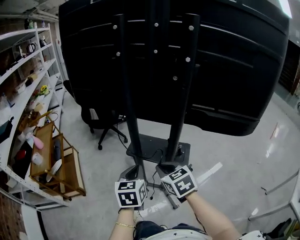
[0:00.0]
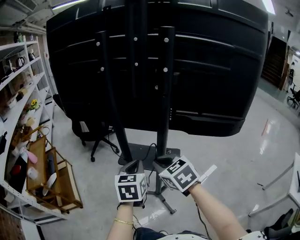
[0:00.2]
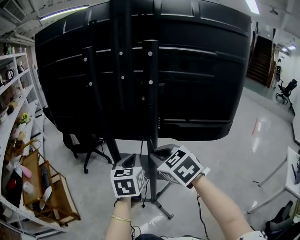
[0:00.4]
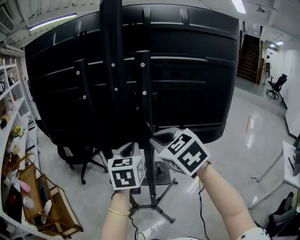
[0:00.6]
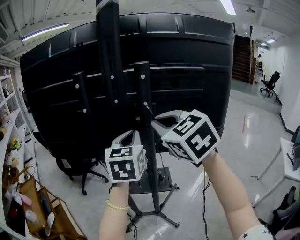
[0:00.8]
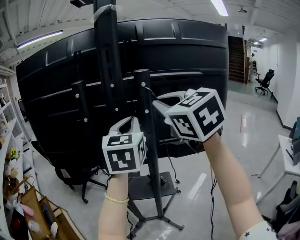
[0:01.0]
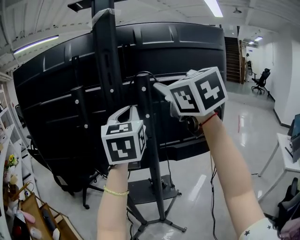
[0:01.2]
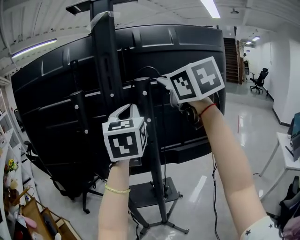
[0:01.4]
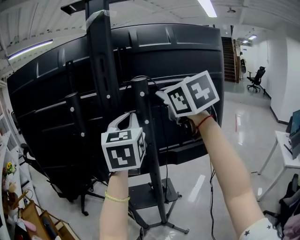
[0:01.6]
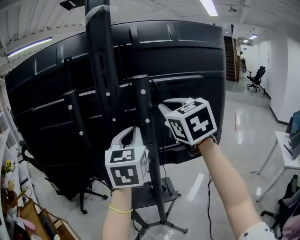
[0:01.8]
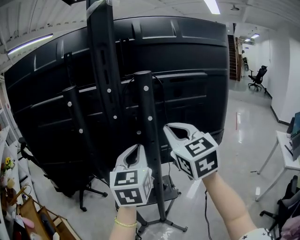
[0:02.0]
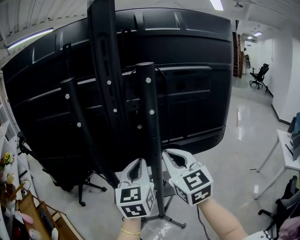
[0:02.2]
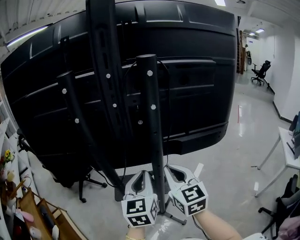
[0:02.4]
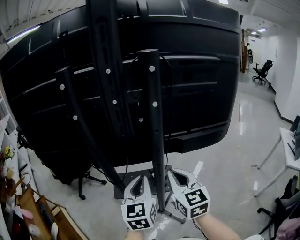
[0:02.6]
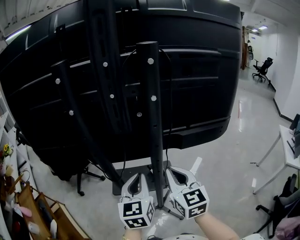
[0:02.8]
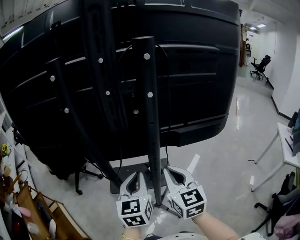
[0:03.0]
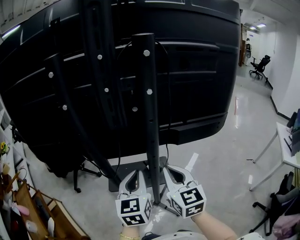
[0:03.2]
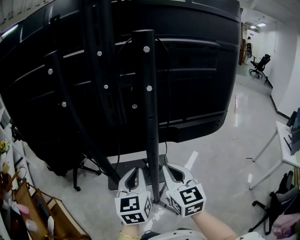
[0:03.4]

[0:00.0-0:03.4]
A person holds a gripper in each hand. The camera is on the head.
0:00.0 to 0:01.6: The grippers both shift upward by roughly 40 cm. The left gripper rotates about 40 degrees, while the right gripper changes its angle by roughly 40 degrees.
0:01.6 to 0:03.4: The grippers both shift downward by some 30 cm.

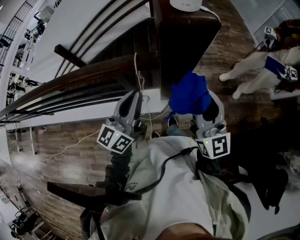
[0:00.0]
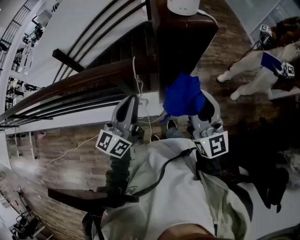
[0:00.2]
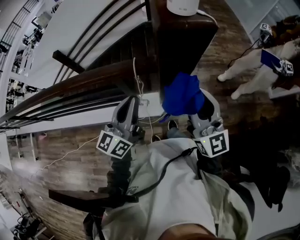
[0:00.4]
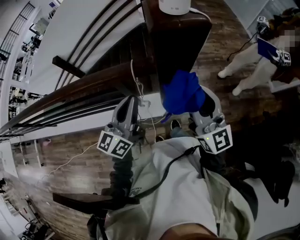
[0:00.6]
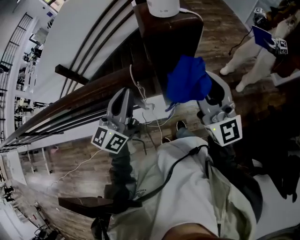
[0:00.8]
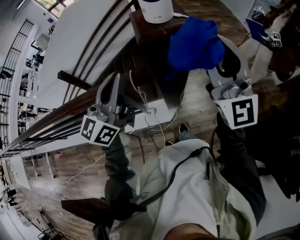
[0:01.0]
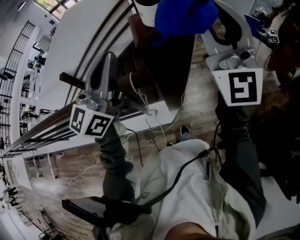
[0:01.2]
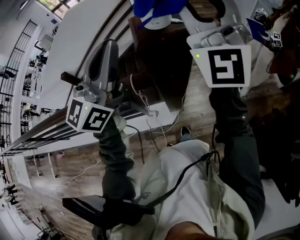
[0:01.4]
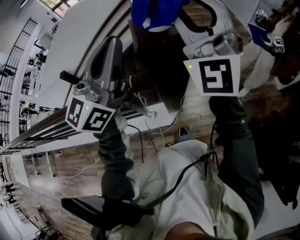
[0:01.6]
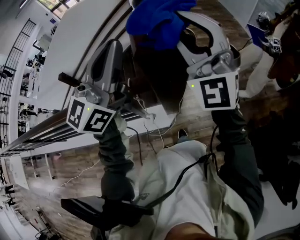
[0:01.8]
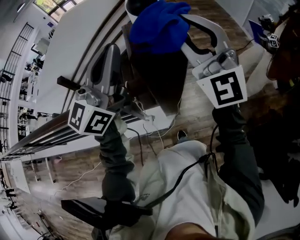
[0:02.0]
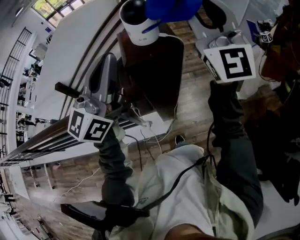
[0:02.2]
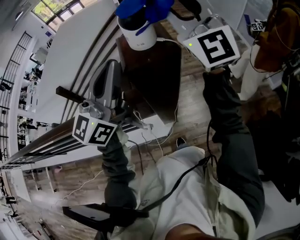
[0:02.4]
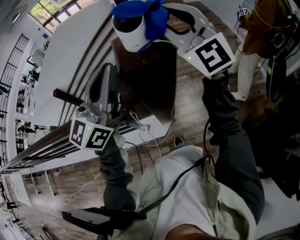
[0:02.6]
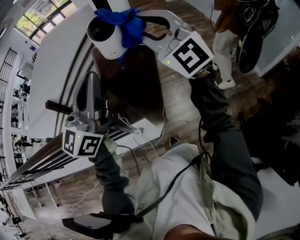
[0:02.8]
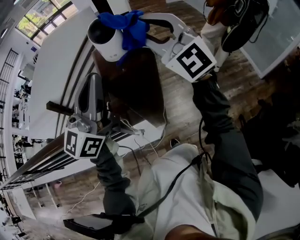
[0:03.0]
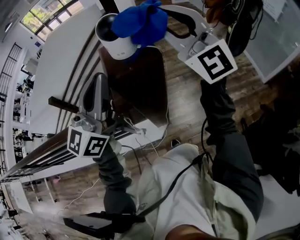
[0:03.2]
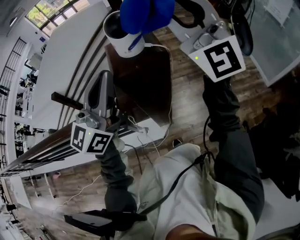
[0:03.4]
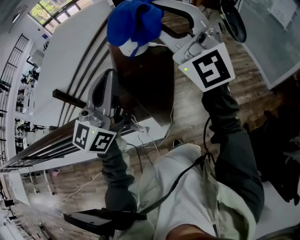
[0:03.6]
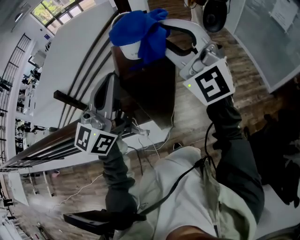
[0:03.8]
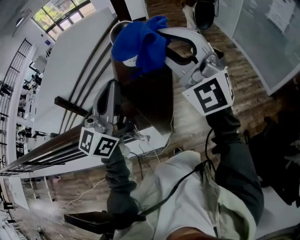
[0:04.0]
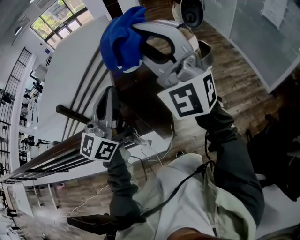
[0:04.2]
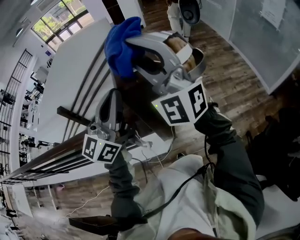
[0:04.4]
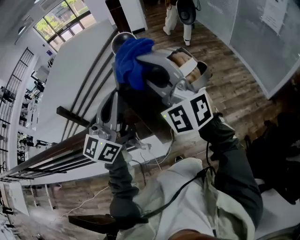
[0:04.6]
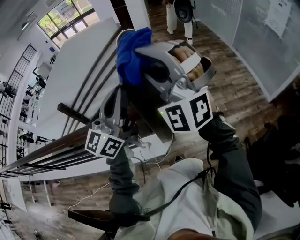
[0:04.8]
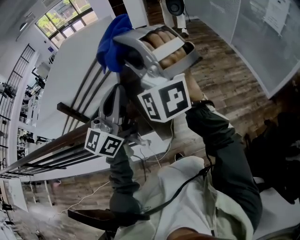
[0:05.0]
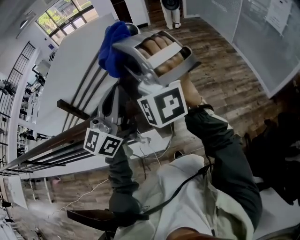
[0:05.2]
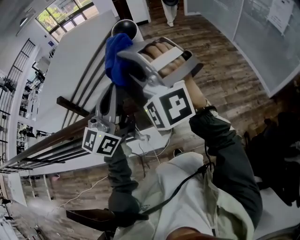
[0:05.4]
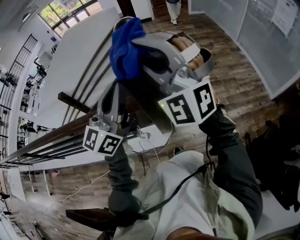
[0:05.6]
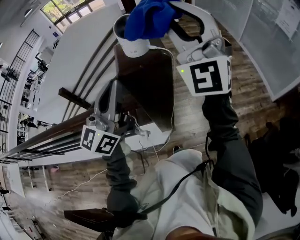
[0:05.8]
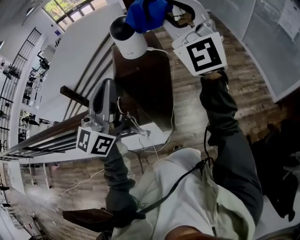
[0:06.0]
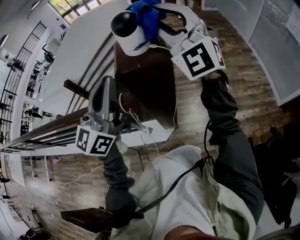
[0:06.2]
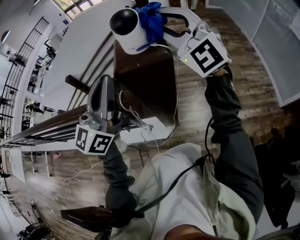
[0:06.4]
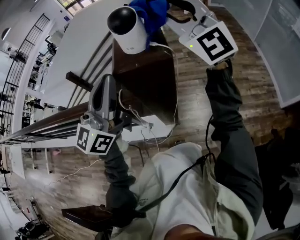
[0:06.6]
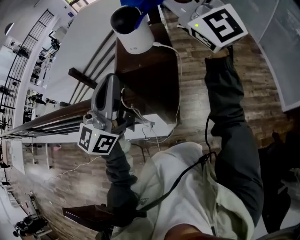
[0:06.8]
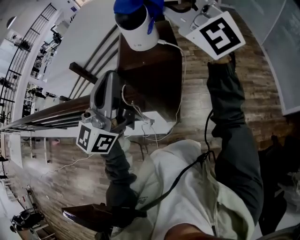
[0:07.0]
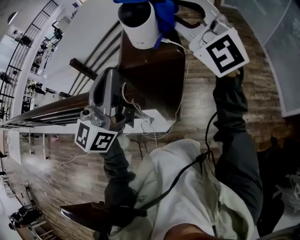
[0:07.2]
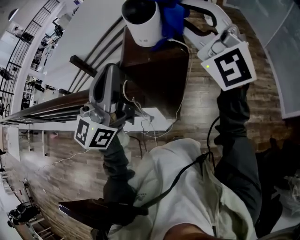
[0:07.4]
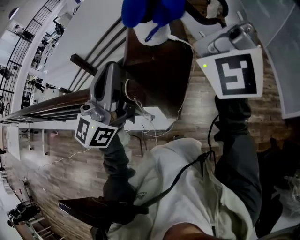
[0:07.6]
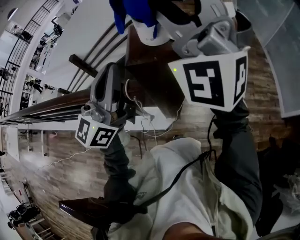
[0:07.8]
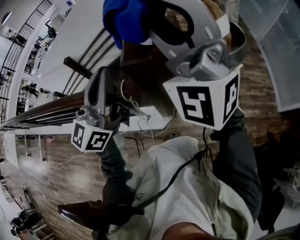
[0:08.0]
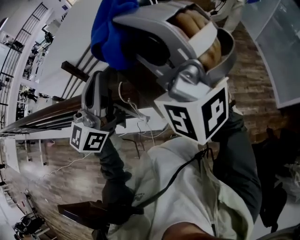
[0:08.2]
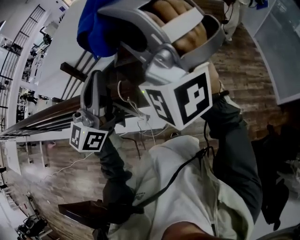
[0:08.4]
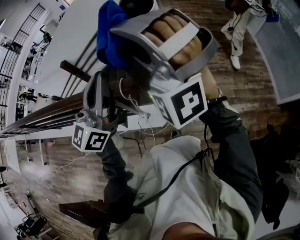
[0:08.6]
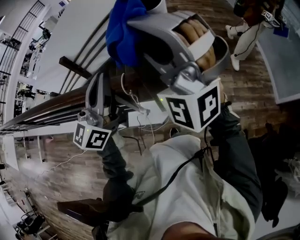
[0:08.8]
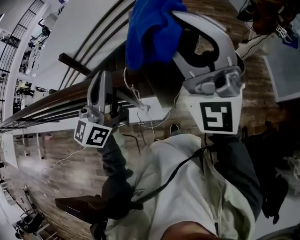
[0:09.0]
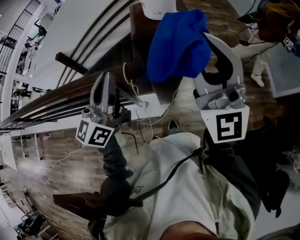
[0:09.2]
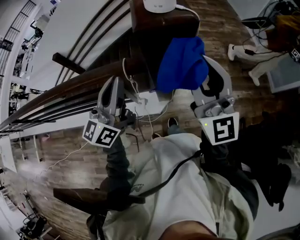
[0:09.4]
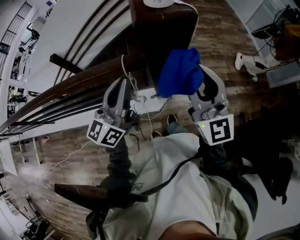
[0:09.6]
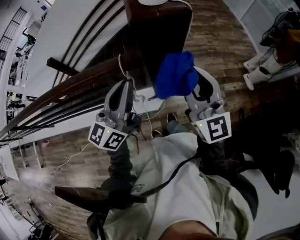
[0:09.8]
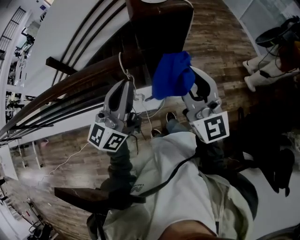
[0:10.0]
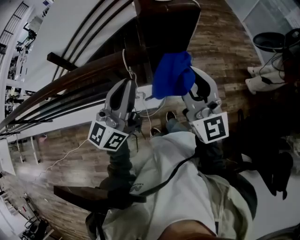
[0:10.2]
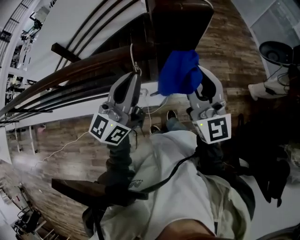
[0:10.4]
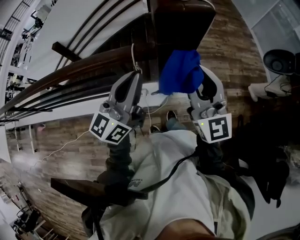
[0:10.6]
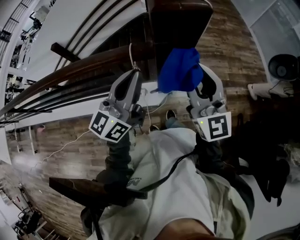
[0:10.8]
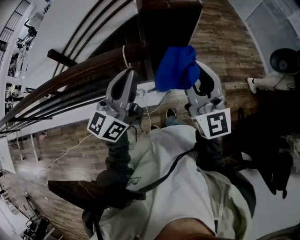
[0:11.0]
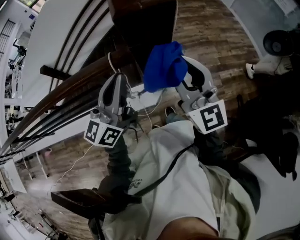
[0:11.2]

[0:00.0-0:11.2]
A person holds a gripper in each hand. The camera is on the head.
0:00.0 to 0:01.6: Both grippers travel together upward and forward, some 25 cm. The left gripper rotates about 30 degrees; the right gripper twists some 50 degrees counterclockwise, seen from behind.
0:01.6 to 0:03.2: The right gripper swings left and right, some 5 cm each way, with 2 reversals, and changes its angle by some 20 degrees.
0:03.2 to 0:04.8: The right gripper travels to the left and backward by roughly 10 cm, and rolls counterclockwise, seen from behind, by some 40 degrees.
0:04.8 to 0:06.4: The right gripper moves forward, about 10 cm, and turns by about 30 degrees.
0:06.4 to 0:08.0: The right gripper shifts approximately 10 cm to the left, backward and upward, and swivels roughly 30 degrees.
0:08.0 to 0:09.6: The left gripper travels downward and backward by about 15 cm. Meanwhile the right gripper shifts some 25 cm downward and backward, and twists about 60 degrees clockwise, seen from behind.
0:09.6 to 0:11.2: There are only small adjustments of the grippers.

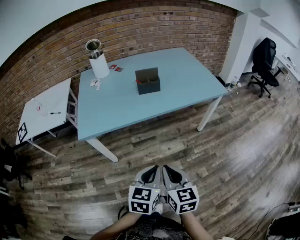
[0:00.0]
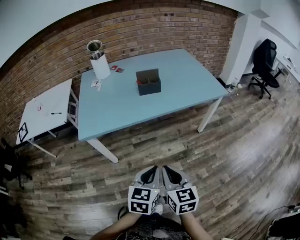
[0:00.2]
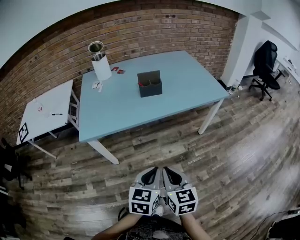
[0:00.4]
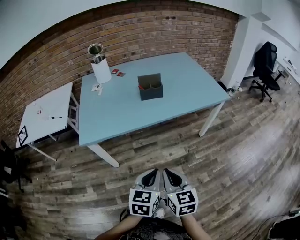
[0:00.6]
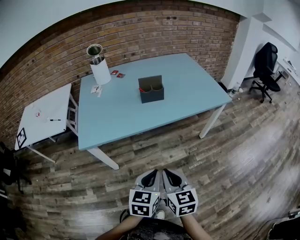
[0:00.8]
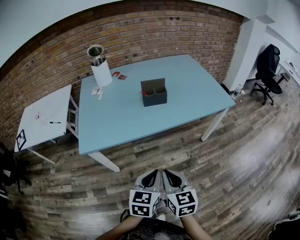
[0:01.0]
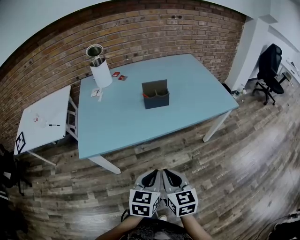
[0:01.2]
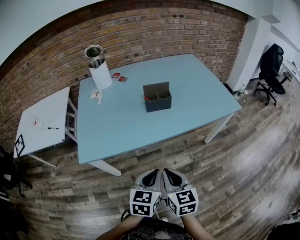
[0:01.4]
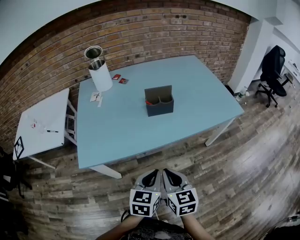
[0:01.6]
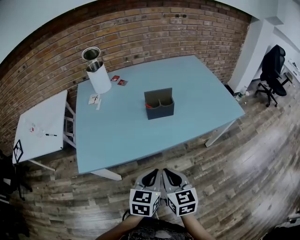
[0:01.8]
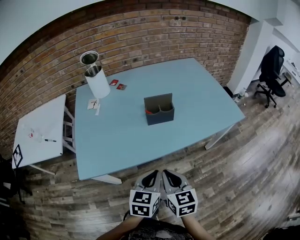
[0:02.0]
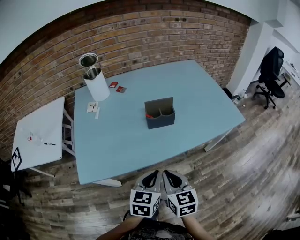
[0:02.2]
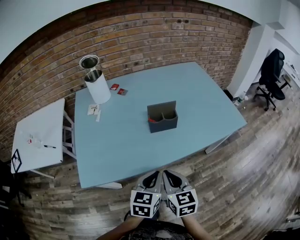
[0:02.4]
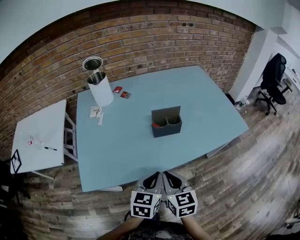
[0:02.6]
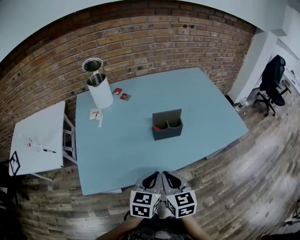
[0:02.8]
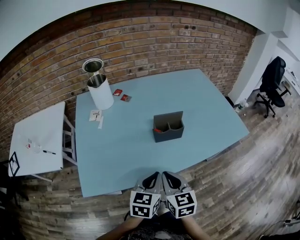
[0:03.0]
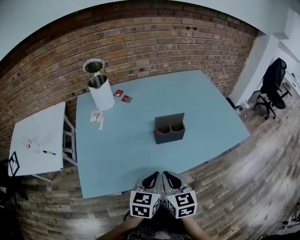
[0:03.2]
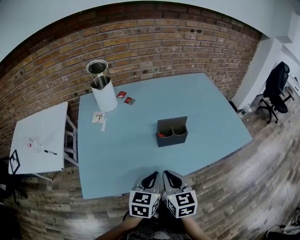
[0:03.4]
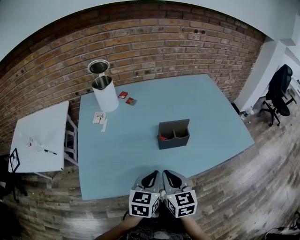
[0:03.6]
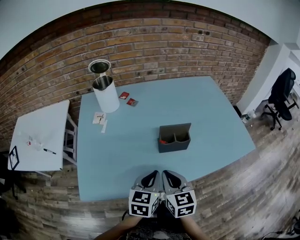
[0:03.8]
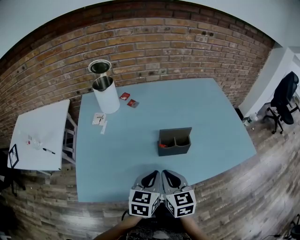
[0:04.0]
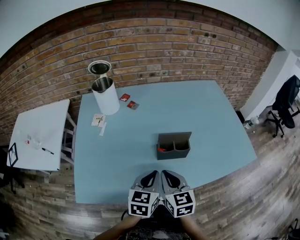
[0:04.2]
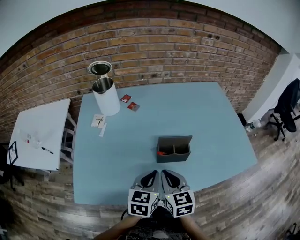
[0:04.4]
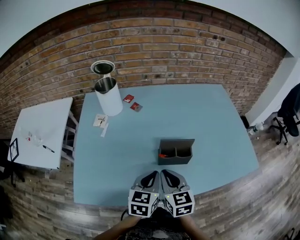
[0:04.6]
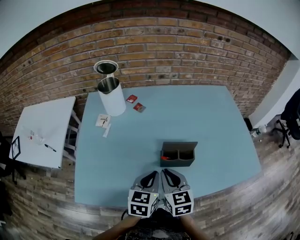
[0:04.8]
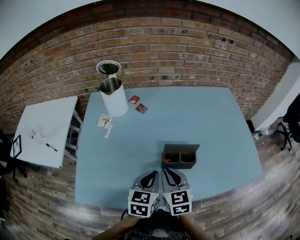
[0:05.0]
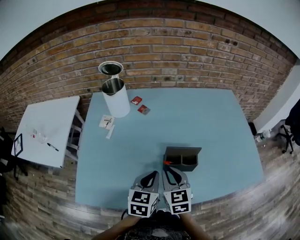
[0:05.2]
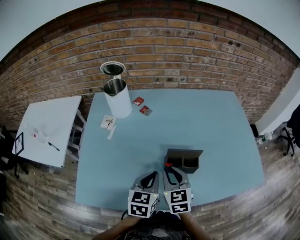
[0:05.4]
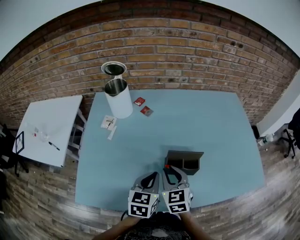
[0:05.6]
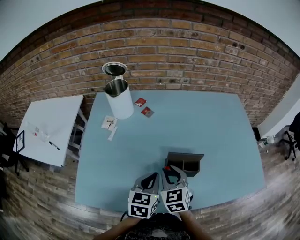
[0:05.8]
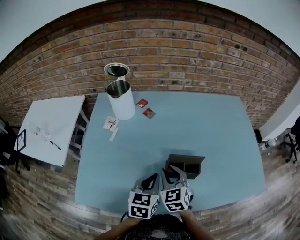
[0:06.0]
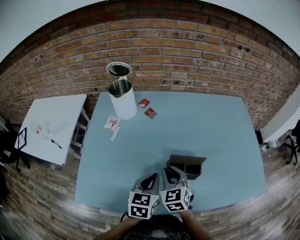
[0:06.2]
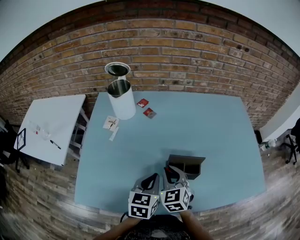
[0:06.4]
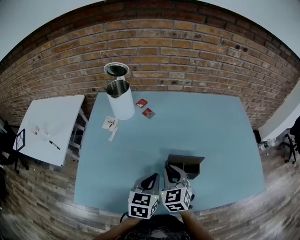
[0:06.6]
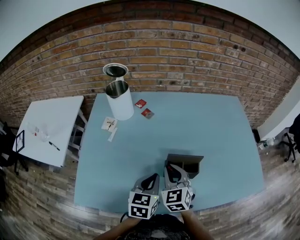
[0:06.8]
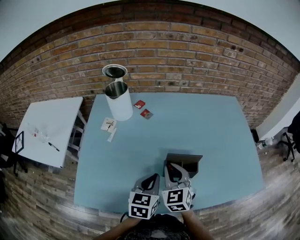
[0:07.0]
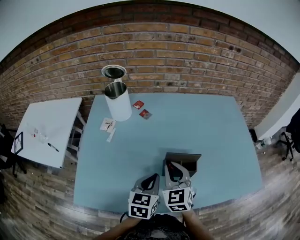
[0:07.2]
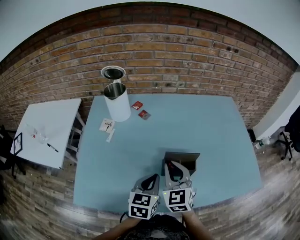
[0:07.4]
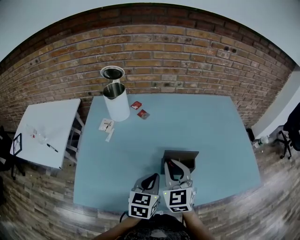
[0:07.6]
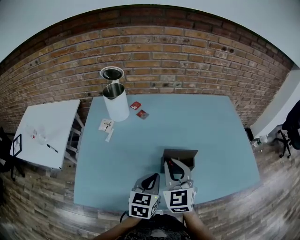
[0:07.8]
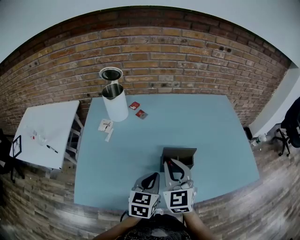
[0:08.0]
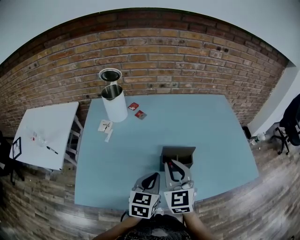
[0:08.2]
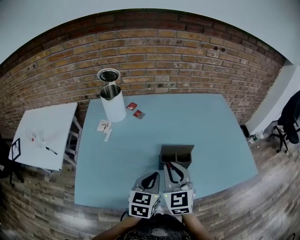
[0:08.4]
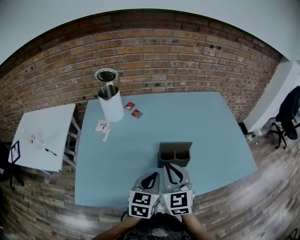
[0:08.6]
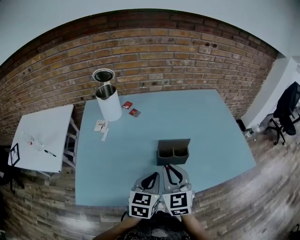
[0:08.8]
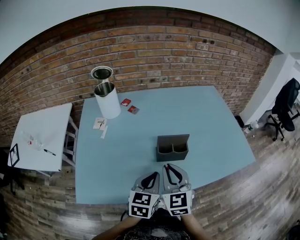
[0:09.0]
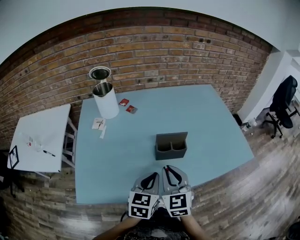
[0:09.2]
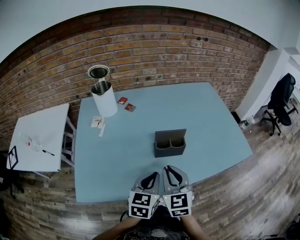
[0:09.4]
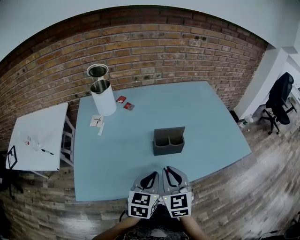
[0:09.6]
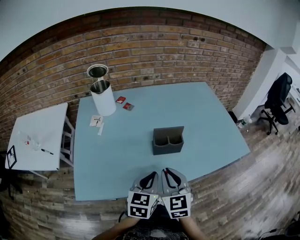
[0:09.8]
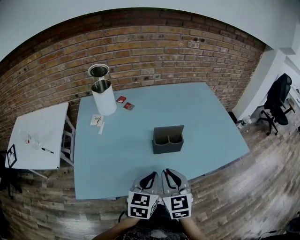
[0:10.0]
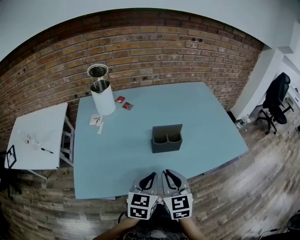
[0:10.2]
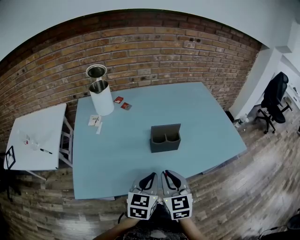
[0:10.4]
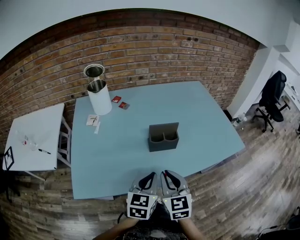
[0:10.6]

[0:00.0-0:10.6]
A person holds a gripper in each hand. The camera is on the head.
0:00.0 to 0:01.6: The two grippers go approximately 20 cm forward.
0:01.6 to 0:03.0: The right gripper moves forward and to the left, roughly 15 cm. Meanwhile the left gripper moves forward, roughly 15 cm.
0:03.0 to 0:04.6: The two grippers go some 15 cm forward.
0:04.6 to 0:06.0: The right gripper heads forward, covering approximately 10 cm, and rotates roughly 20 degrees, while the left gripper changes place by about 5 cm.
0:06.0 to 0:07.6: The right gripper shifts some 10 cm upward.
0:07.6 to 0:09.0: Both grippers move backward, approximately 5 cm.
0:09.0 to 0:10.6: Both grippers travel together backward, approximately 10 cm.
